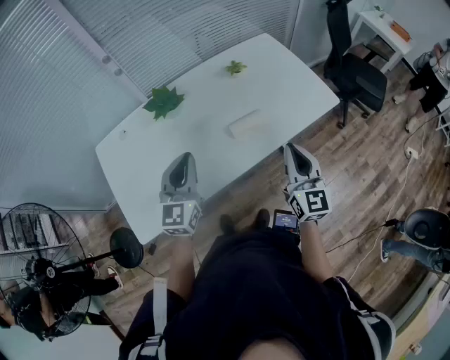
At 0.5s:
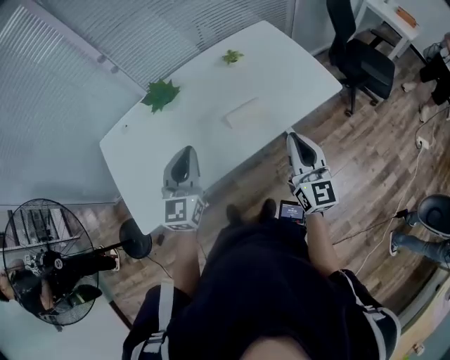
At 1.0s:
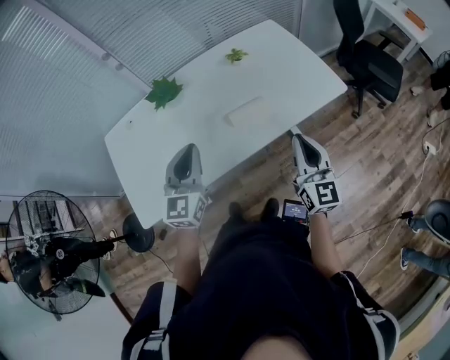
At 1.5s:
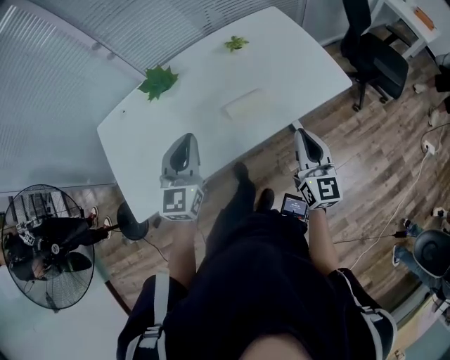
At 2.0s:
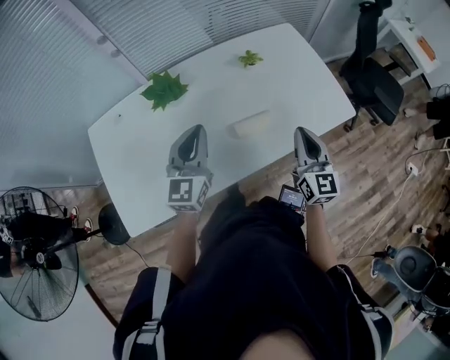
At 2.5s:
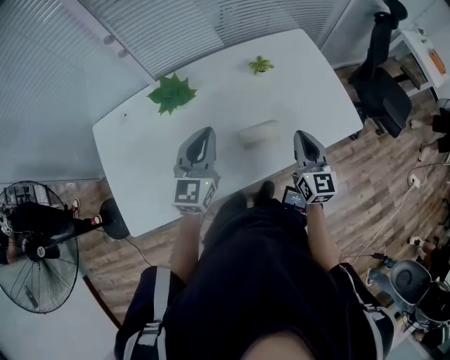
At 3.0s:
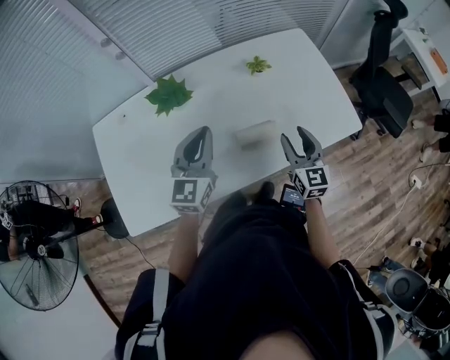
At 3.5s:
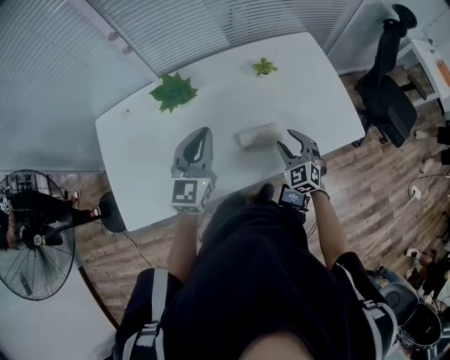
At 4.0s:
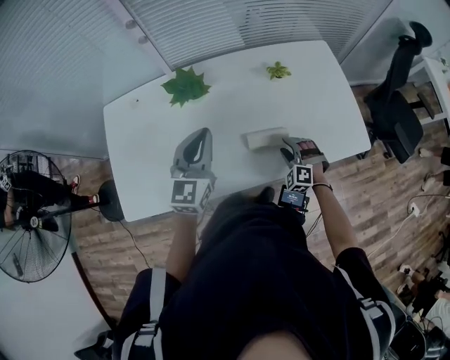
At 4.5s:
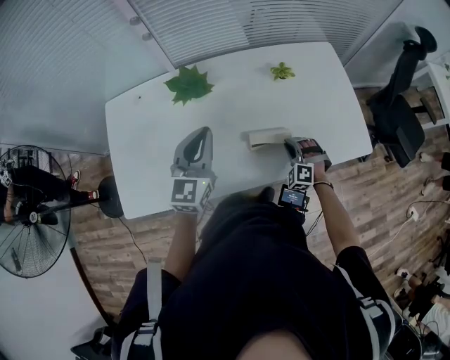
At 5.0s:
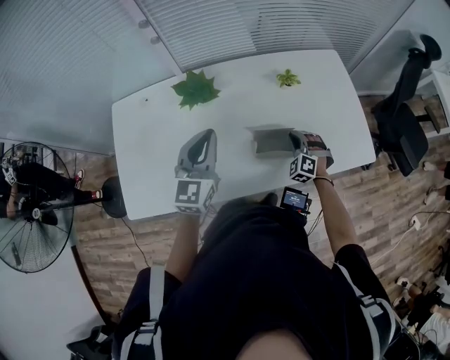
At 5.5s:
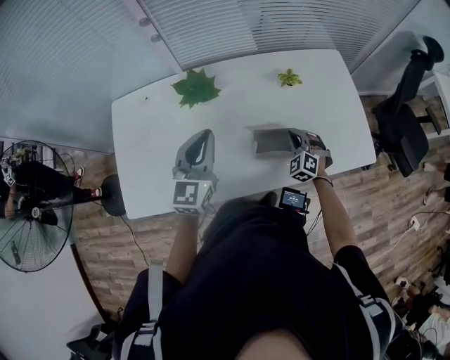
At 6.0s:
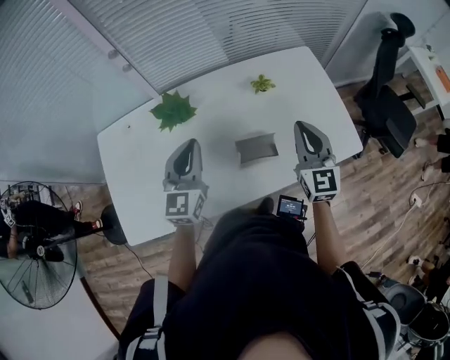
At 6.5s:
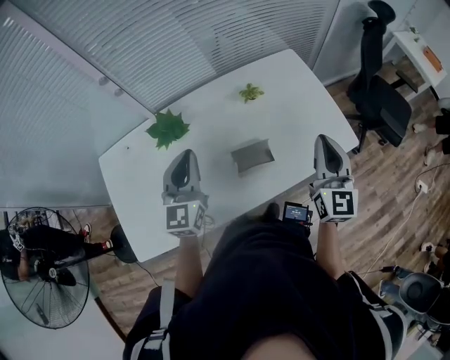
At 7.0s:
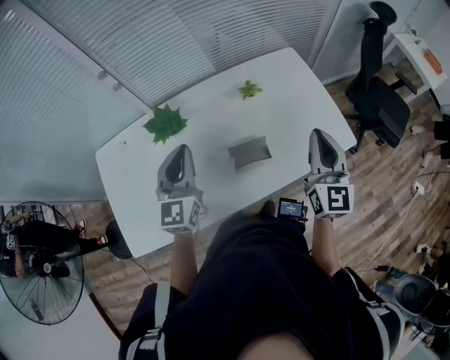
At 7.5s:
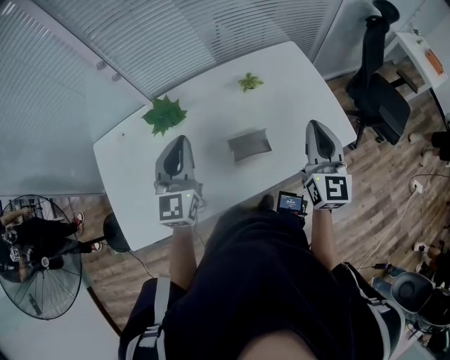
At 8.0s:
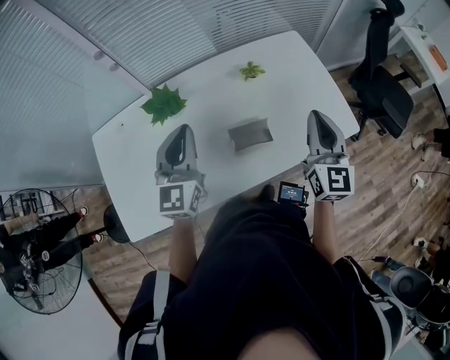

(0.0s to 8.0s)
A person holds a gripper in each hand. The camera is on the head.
0.0s - 2.0s: Both grippers move forward, roughly 10 cm.
2.0s - 4.0s: The right gripper moves downward, roughly 25 cm, rotates around the line of its fingers by approximately 70 degrees, counterclockwise from behind, and opens its fingers.
4.0s - 6.0s: The right gripper is displaced upward by about 25 cm, rotates around the line of its fingers by roughly 60 degrees, clockwise from behind, and closes its fingers.
6.0s - 8.0s: The right gripper heads to the right, covering roughly 5 cm.

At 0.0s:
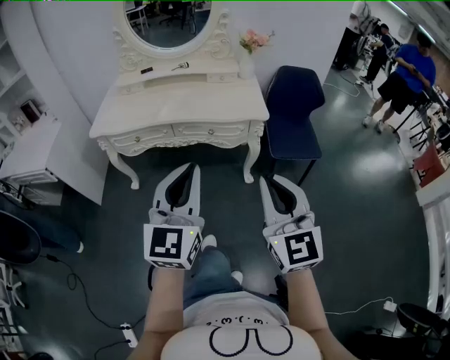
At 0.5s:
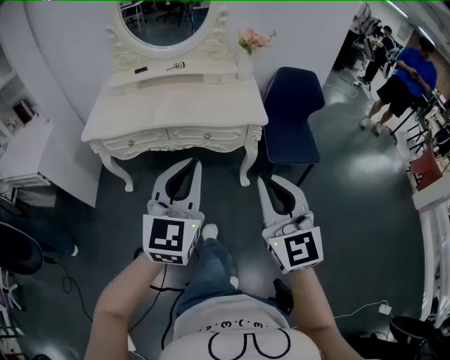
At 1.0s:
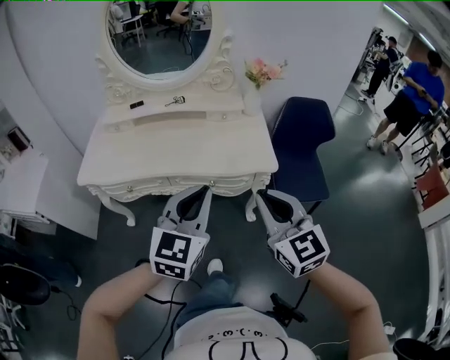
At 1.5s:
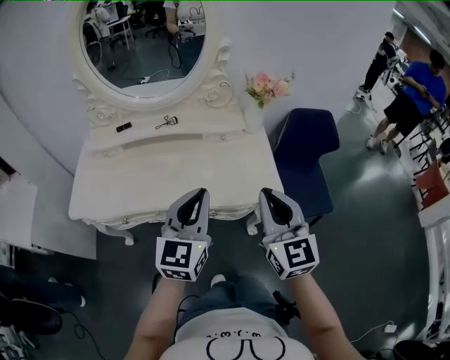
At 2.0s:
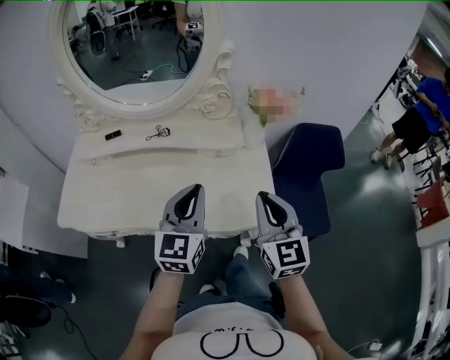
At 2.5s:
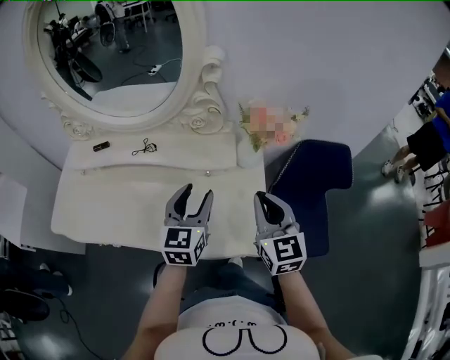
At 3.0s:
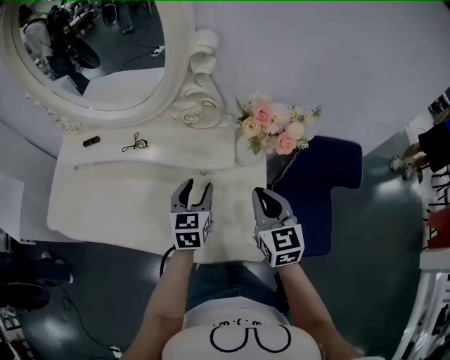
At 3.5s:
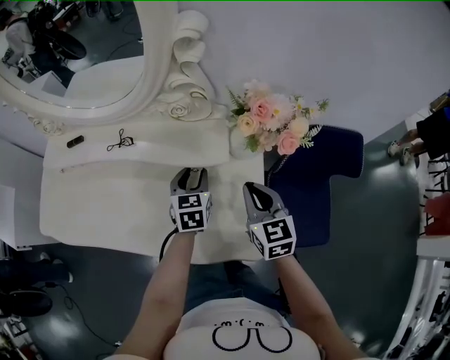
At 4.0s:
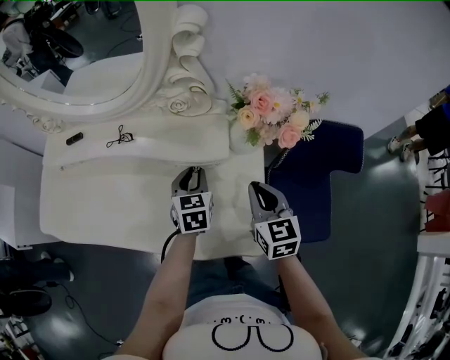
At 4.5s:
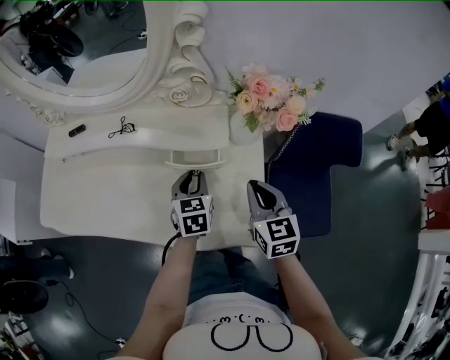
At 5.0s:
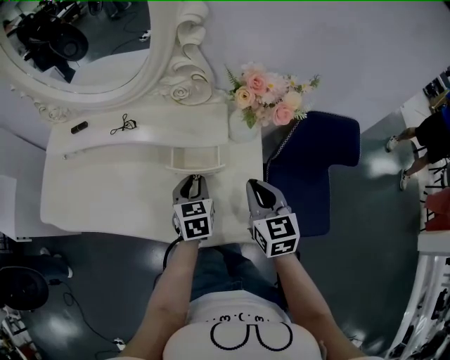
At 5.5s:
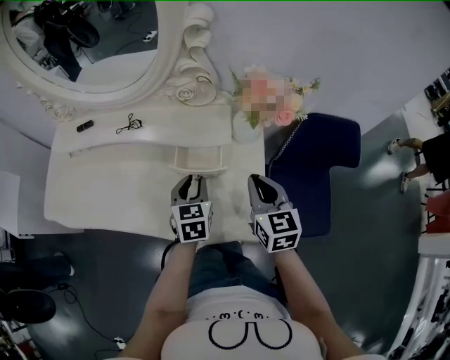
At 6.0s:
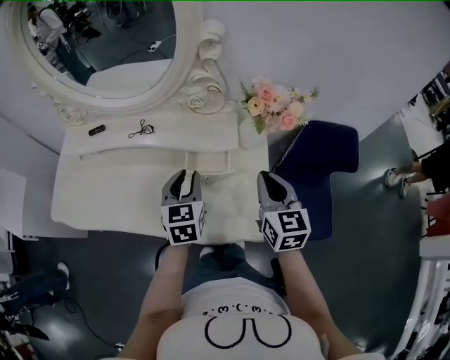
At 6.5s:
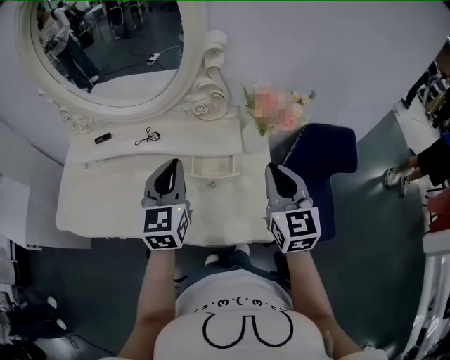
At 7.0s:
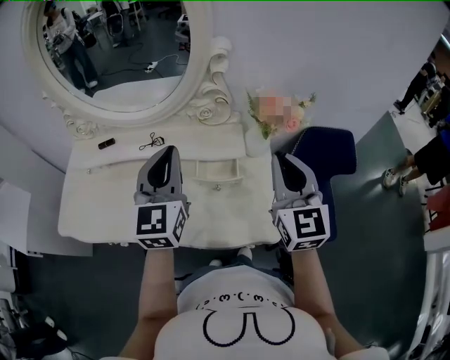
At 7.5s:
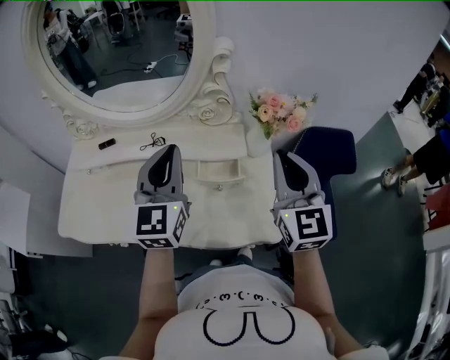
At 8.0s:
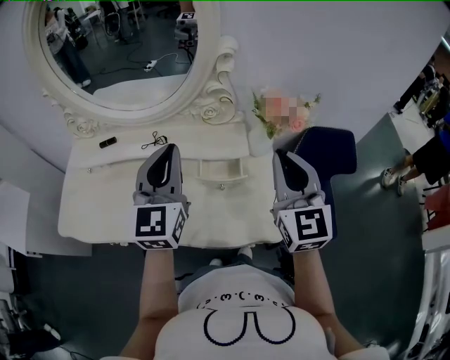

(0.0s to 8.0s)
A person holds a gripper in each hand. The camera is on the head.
0.0s - 2.0s: The pair of grippers is taken forward, about 50 cm.
2.0s - 4.0s: The left gripper moves downward and forward, roughly 30 cm, tips its fingers downward by approximately 30 degrees, and opens. Meanwhile the right gripper heads forward, downward and to the right, covering about 25 cm, and turns by some 20 degrees.
4.0s - 6.0s: The left gripper goes roughly 15 cm upward, backward and to the left; the right gripper is displaced upward by some 10 cm.
6.0s - 8.0s: Both grippers move upward, roughly 15 cm. The left gripper changes its angle by some 30 degrees, and closes. The right gripper rotates roughly 20 degrees.

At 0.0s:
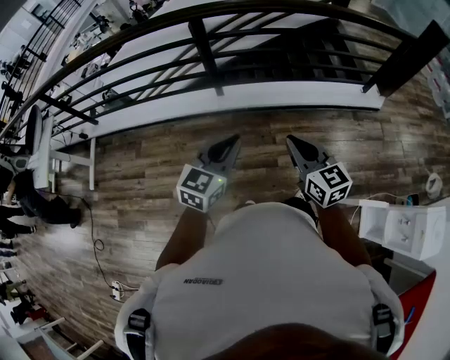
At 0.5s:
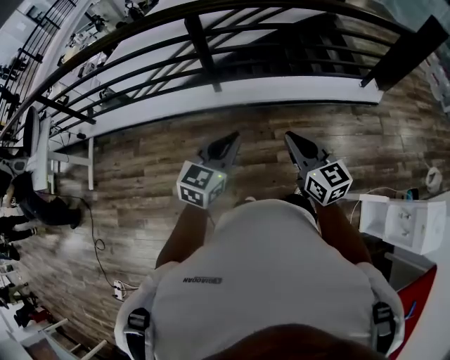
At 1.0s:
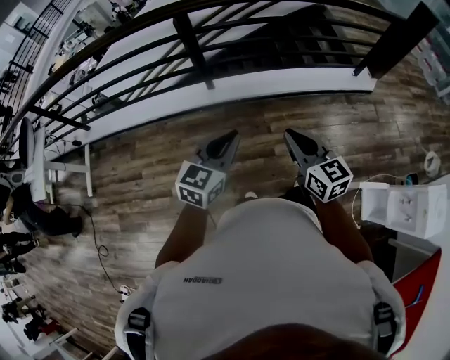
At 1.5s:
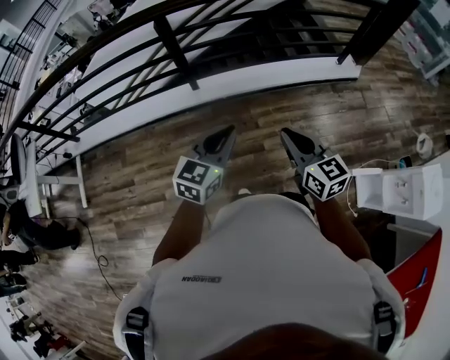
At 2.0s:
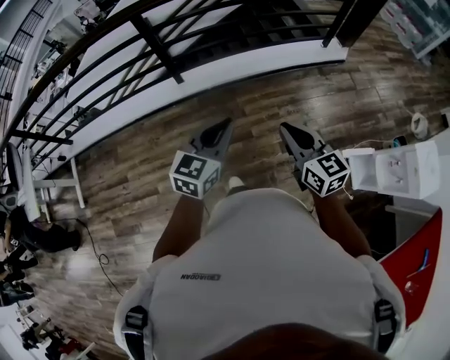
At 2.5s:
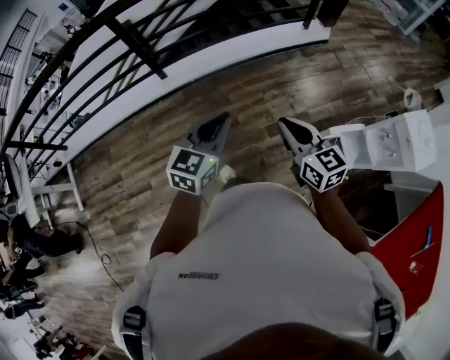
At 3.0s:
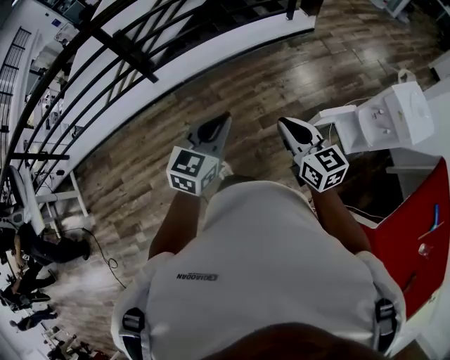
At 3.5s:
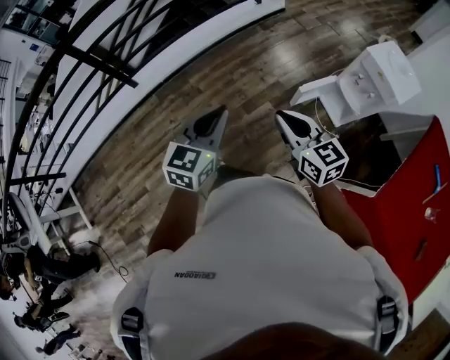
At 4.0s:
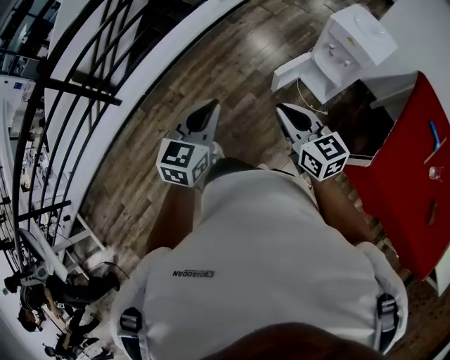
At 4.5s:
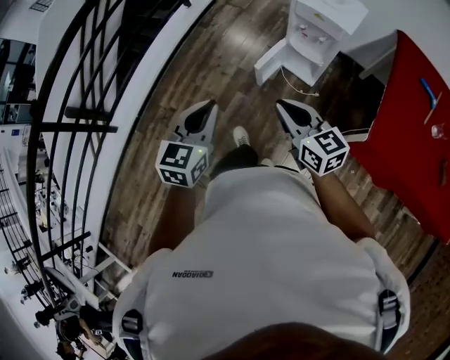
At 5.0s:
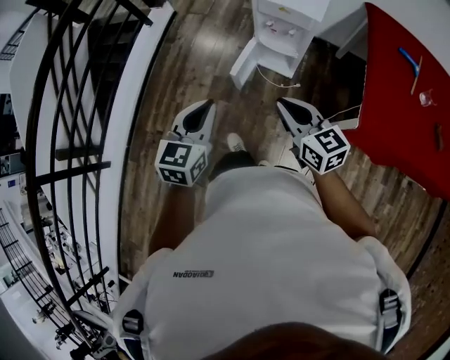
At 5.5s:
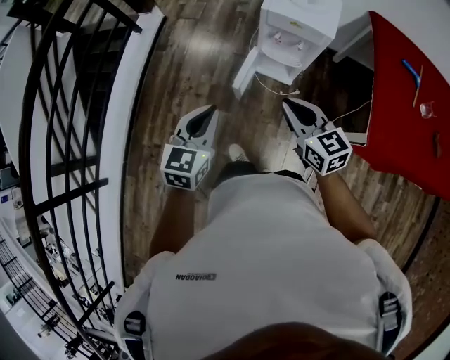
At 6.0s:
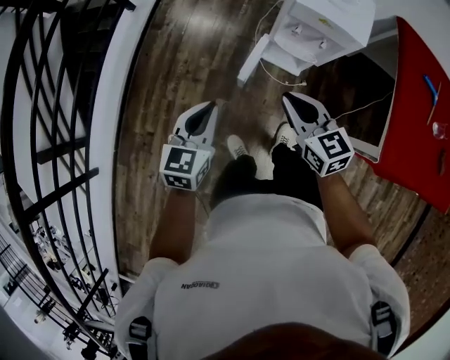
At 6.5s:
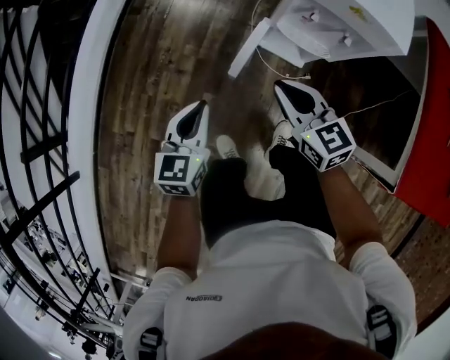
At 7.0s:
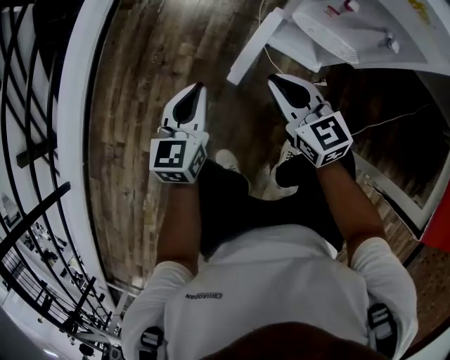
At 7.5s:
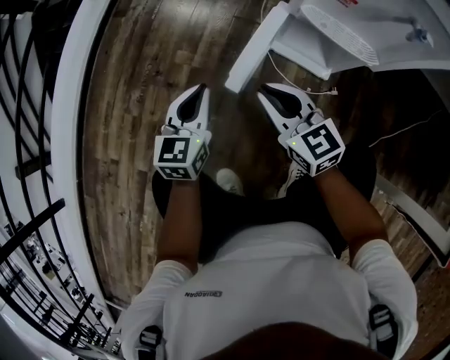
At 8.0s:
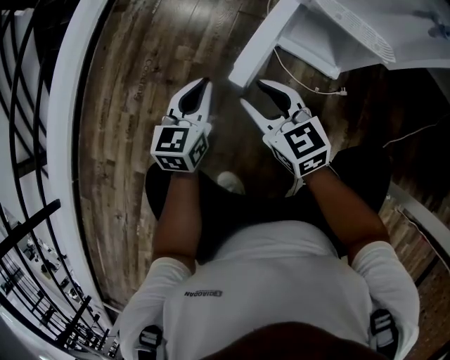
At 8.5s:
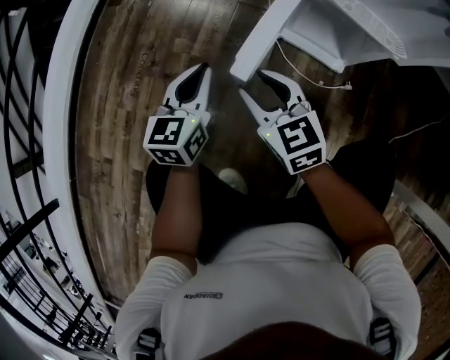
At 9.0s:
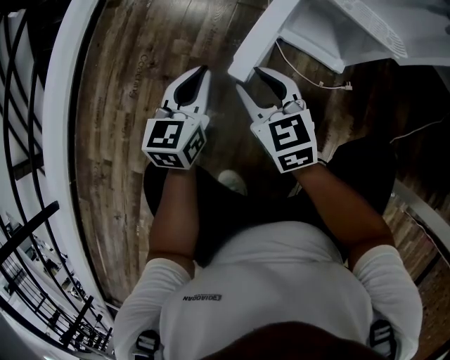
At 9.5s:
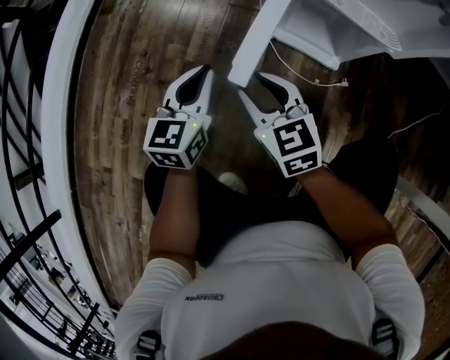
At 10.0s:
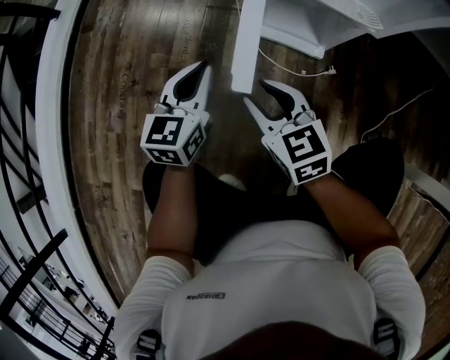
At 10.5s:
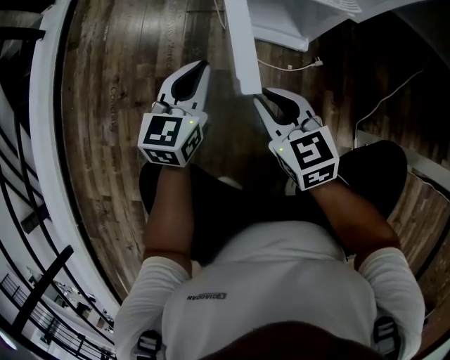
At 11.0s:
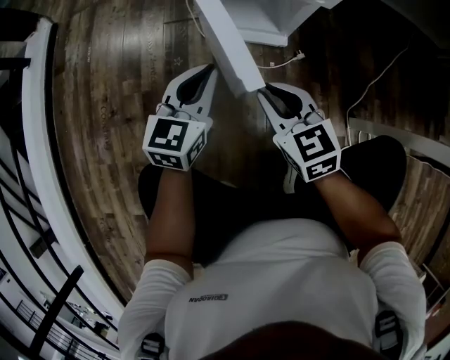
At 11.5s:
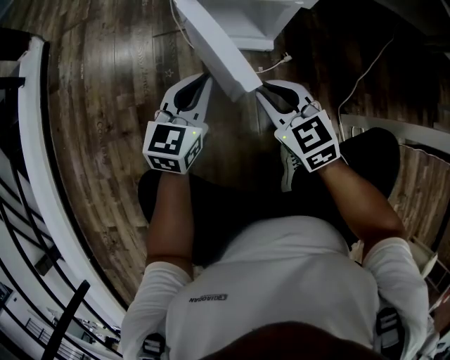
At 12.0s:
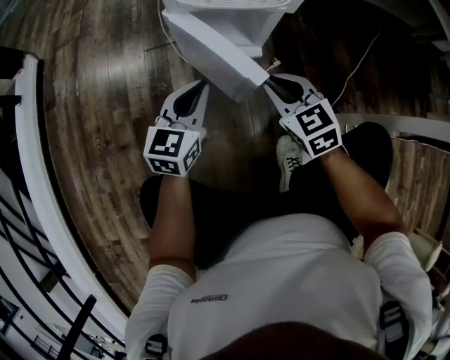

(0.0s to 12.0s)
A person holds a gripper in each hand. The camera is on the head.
0.0s - 2.0s: The right gripper moves to the right and backward, about 15 cm. The left gripper goes roughly 10 cm to the right.
2.0s - 4.0s: The left gripper shifts by about 35 cm, and turns by some 30 degrees. Meanwhile the right gripper shifts by roughly 40 cm, and rotates roughly 30 degrees.
4.0s - 6.0s: The left gripper shifts by approximately 30 cm, and changes its angle by about 20 degrees. Meanwhile the right gripper ends up approximately 25 cm from where it was, and turns by some 30 degrees.
6.0s - 8.0s: The two grippers go about 50 cm downward. The right gripper opens up.
8.0s - 10.0s: The left gripper heads to the right, covering approximately 5 cm. The right gripper changes place by roughly 5 cm.
10.0s - 12.0s: The two grippers go approximately 15 cm to the right. The left gripper swivels some 20 degrees.
